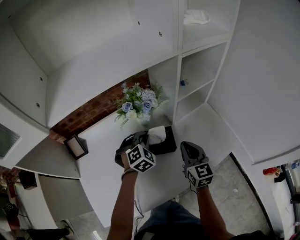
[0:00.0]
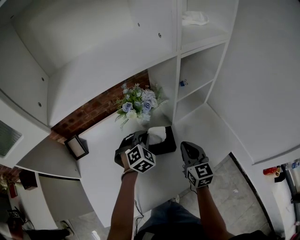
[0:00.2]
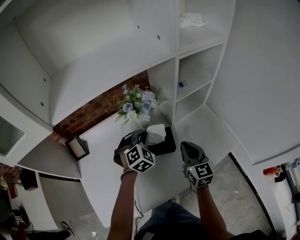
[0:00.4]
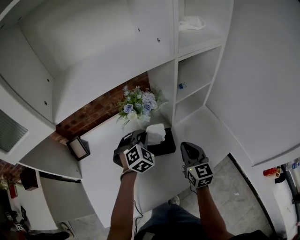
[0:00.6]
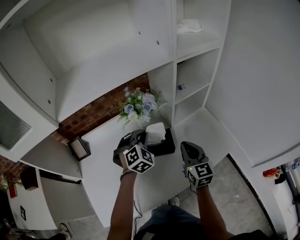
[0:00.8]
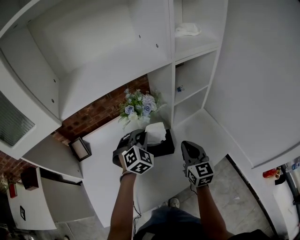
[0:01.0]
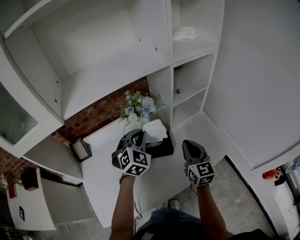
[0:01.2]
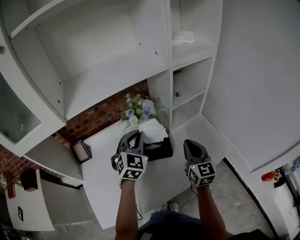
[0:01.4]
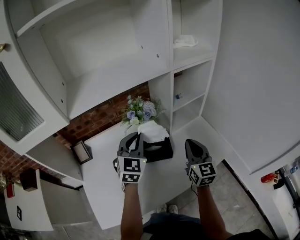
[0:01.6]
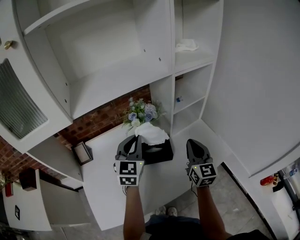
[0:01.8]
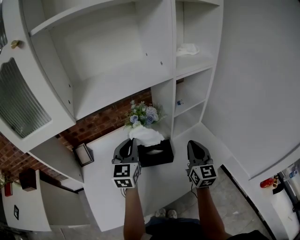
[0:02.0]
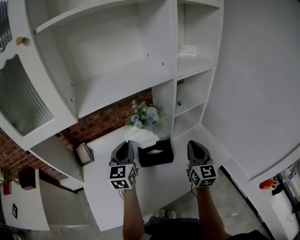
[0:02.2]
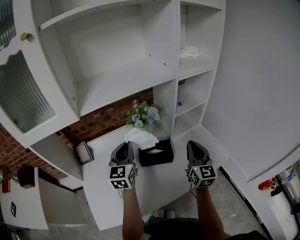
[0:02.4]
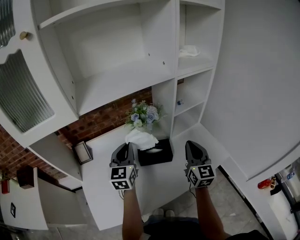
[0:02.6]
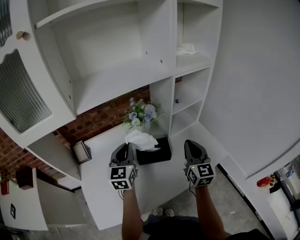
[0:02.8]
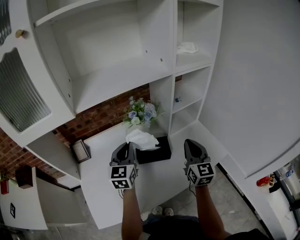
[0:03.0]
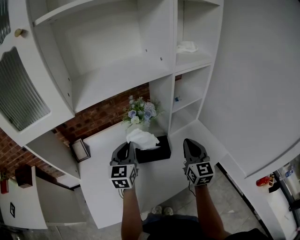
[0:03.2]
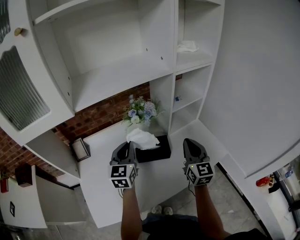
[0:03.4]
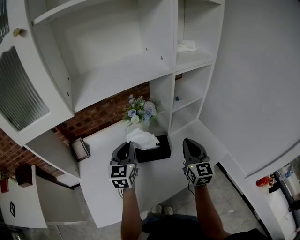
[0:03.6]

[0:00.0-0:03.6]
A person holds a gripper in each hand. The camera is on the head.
0:00.0 to 0:01.8: The left gripper heads upward, covering about 20 cm, and tips its fingers upward by approximately 40 degrees; the right gripper travels upward by some 10 cm.
0:01.8 to 0:03.6: The left gripper shifts by approximately 5 cm.

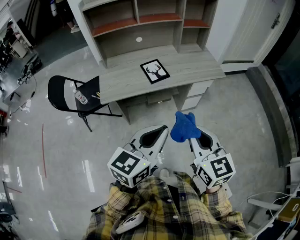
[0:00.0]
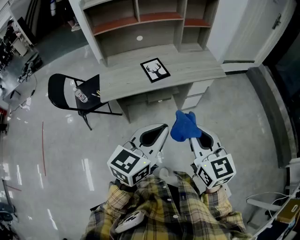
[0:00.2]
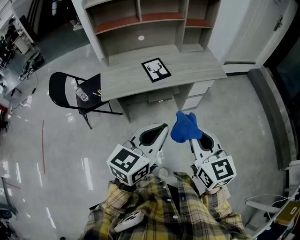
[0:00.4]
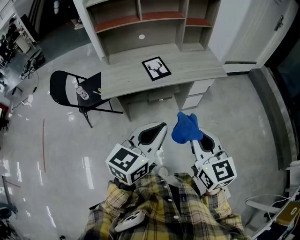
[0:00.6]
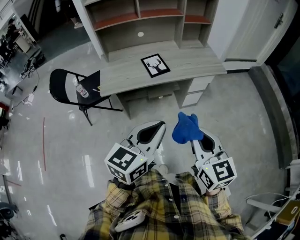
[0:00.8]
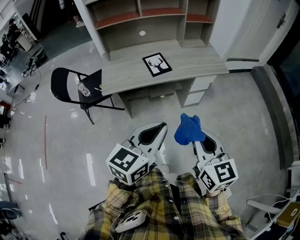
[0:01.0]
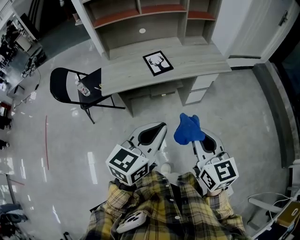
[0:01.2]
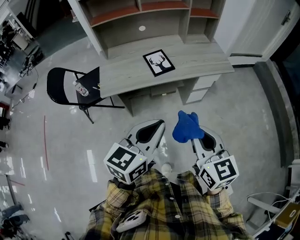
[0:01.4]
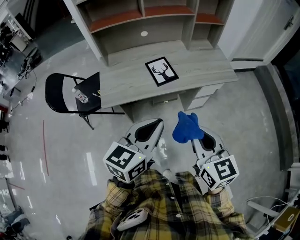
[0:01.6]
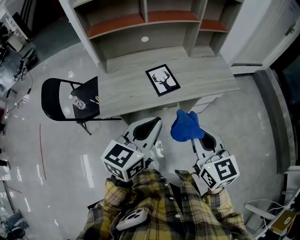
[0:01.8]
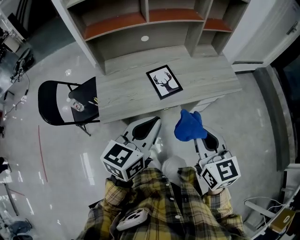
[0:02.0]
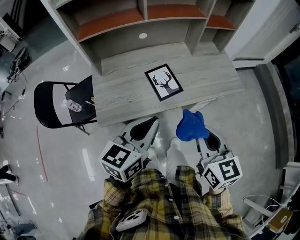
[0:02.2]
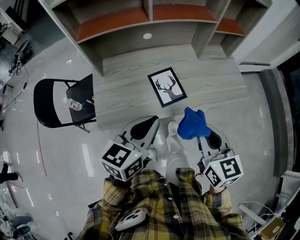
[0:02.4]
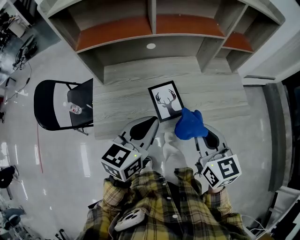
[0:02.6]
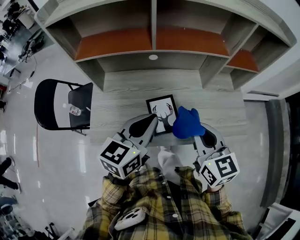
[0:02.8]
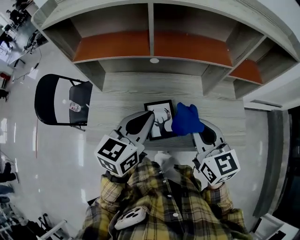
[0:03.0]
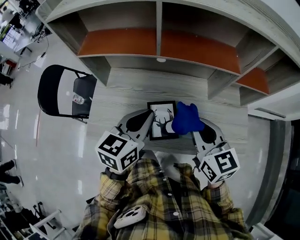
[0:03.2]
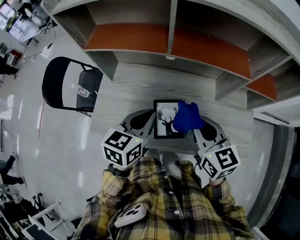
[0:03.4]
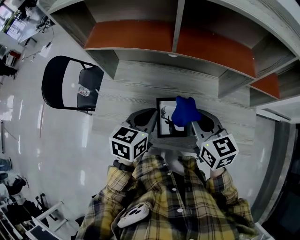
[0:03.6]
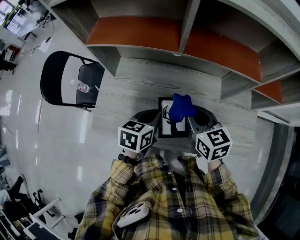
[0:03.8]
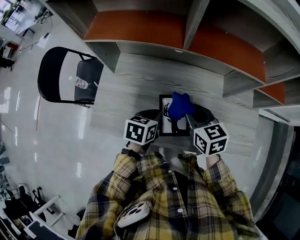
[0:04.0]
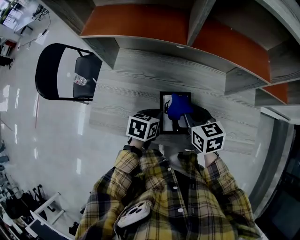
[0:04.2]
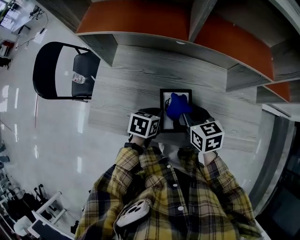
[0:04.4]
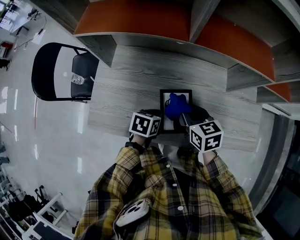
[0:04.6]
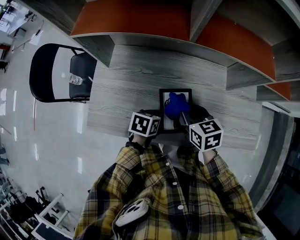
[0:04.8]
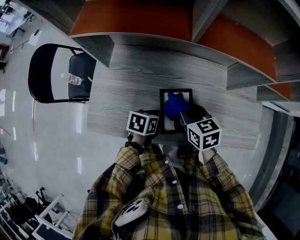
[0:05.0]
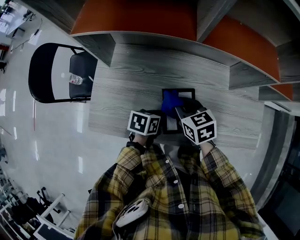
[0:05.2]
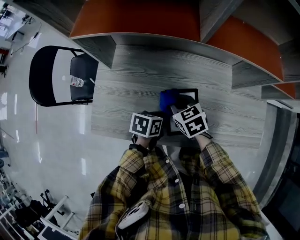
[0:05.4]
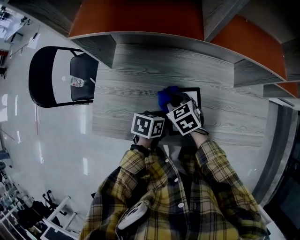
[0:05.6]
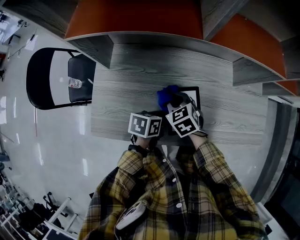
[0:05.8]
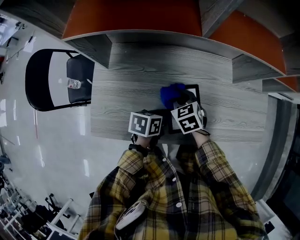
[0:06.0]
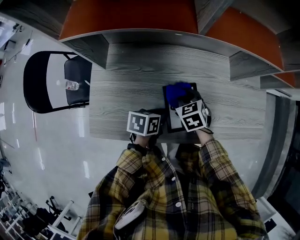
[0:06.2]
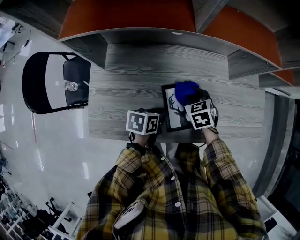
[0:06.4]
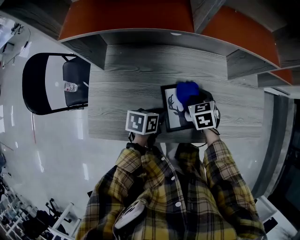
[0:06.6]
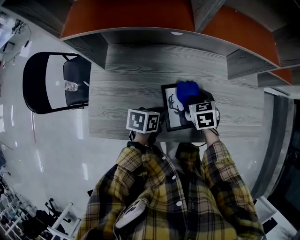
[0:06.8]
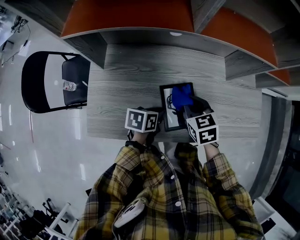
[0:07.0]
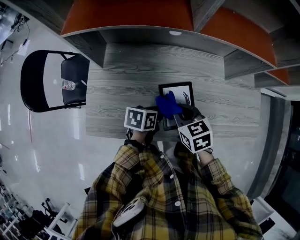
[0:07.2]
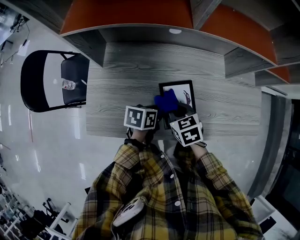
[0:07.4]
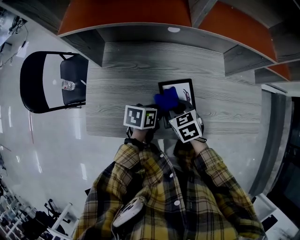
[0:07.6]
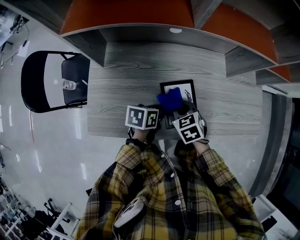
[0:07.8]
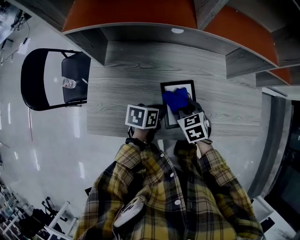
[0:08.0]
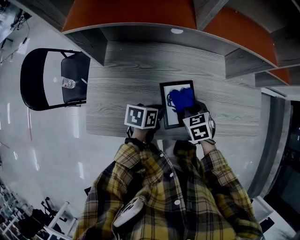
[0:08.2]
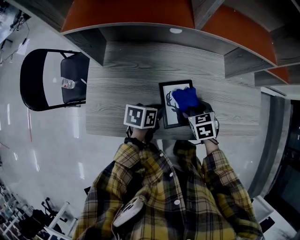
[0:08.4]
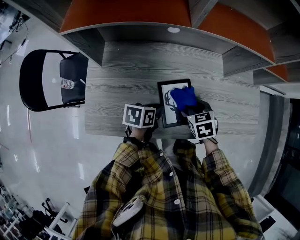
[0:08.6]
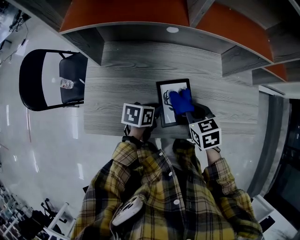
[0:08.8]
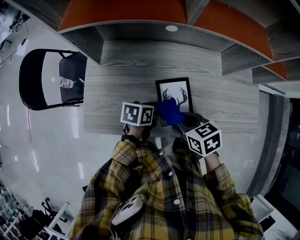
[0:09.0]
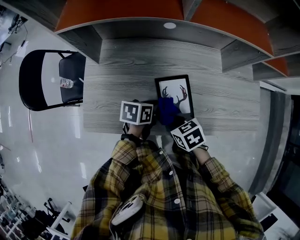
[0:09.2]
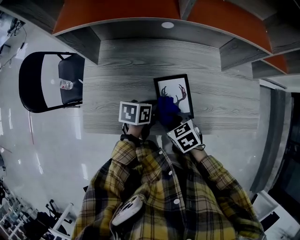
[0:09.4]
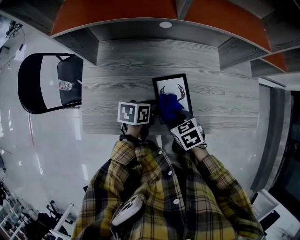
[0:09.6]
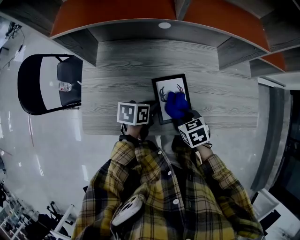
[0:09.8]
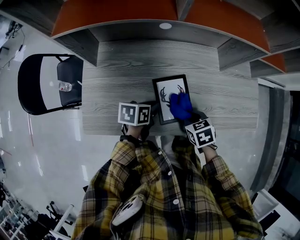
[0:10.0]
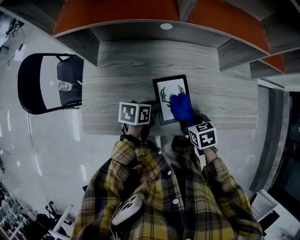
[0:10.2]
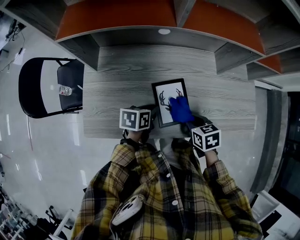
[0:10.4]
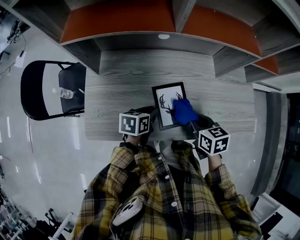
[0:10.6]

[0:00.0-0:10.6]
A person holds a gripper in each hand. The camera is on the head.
0:00.0 to 0:01.6: The right gripper moves forward, approximately 10 cm, while the left gripper moves forward and to the left, some 10 cm.
0:01.6 to 0:03.0: The grippers both shift forward by some 40 cm.
0:03.0 to 0:04.6: Both grippers move downward, about 25 cm. The left gripper points its fingers approximately 40 degrees further downward. The right gripper changes its angle by about 30 degrees.
0:04.6 to 0:06.0: The right gripper heads downward and to the left, covering roughly 10 cm, and swivels approximately 20 degrees.
0:06.0 to 0:07.6: The right gripper heads backward, covering about 5 cm.
0:07.6 to 0:09.0: The right gripper is displaced upward by some 5 cm.
0:09.0 to 0:10.6: The right gripper heads to the right, covering roughly 5 cm.

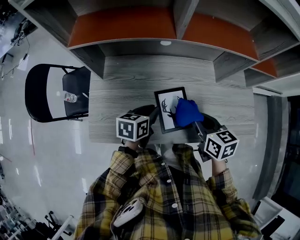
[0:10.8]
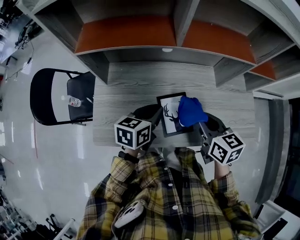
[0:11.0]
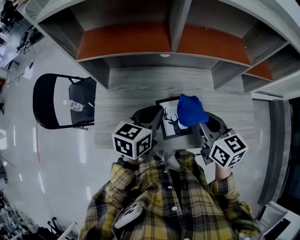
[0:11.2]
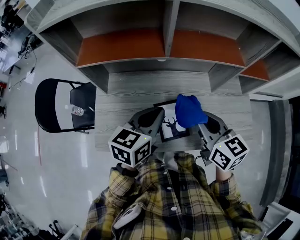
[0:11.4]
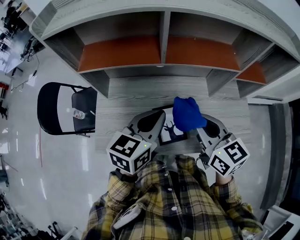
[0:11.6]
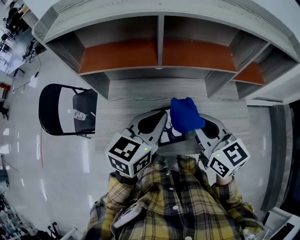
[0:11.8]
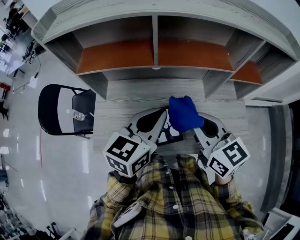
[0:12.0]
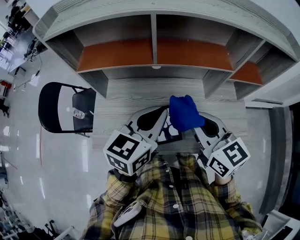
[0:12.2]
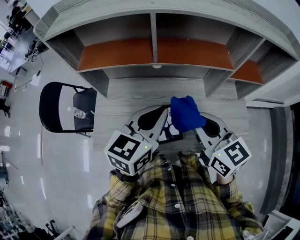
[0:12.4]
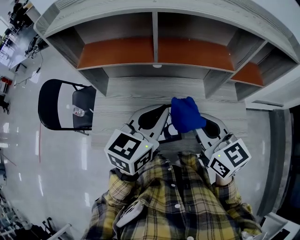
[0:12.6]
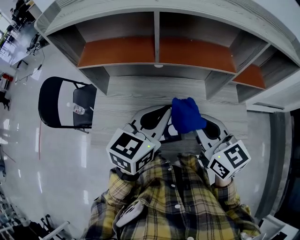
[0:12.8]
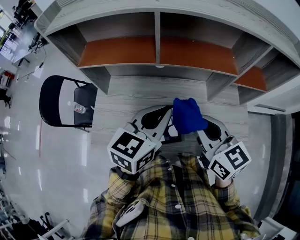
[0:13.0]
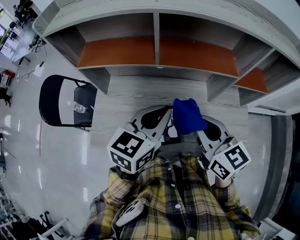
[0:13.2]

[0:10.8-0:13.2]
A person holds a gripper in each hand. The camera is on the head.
0:10.8 to 0:12.0: The grippers both shift upward by approximately 25 cm. The right gripper turns by about 30 degrees. Meanwhile the left gripper turns by some 30 degrees.
0:12.0 to 0:13.2: The grippers make only small movements.

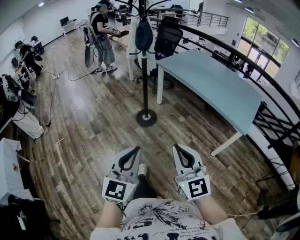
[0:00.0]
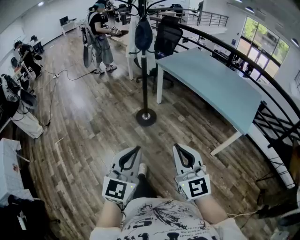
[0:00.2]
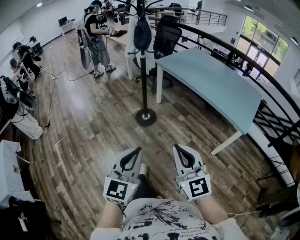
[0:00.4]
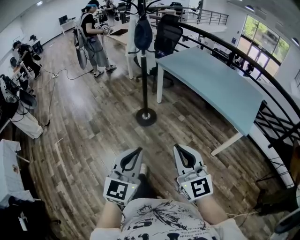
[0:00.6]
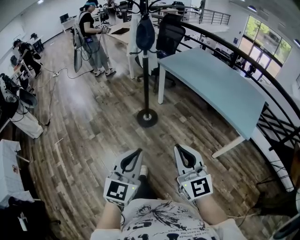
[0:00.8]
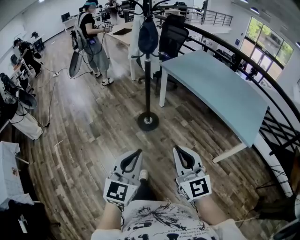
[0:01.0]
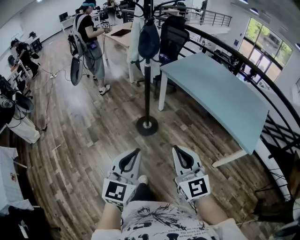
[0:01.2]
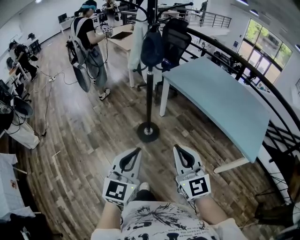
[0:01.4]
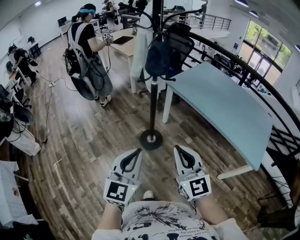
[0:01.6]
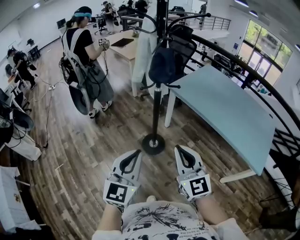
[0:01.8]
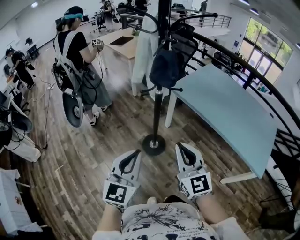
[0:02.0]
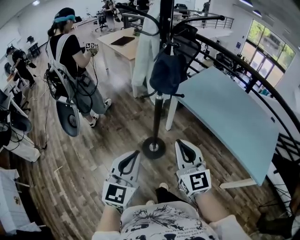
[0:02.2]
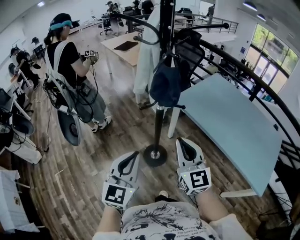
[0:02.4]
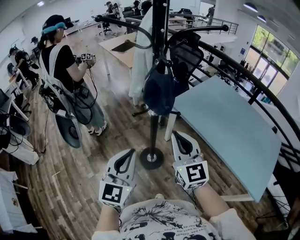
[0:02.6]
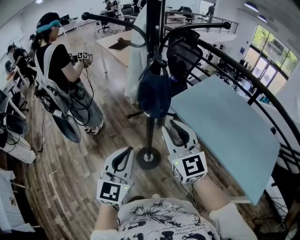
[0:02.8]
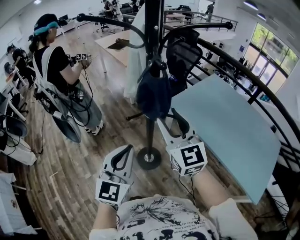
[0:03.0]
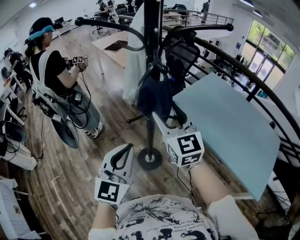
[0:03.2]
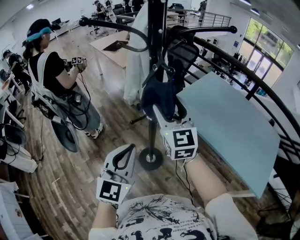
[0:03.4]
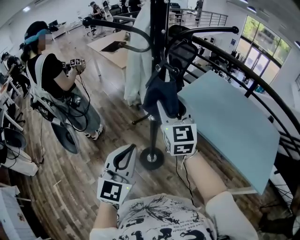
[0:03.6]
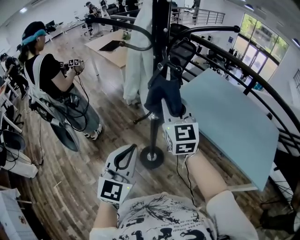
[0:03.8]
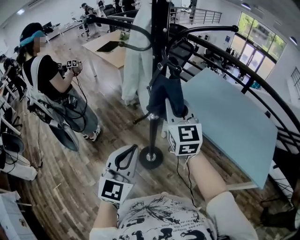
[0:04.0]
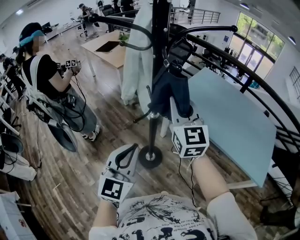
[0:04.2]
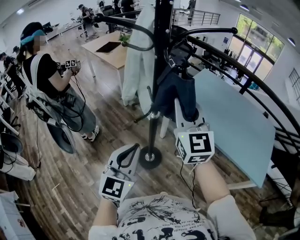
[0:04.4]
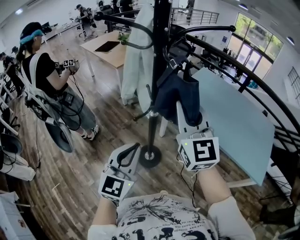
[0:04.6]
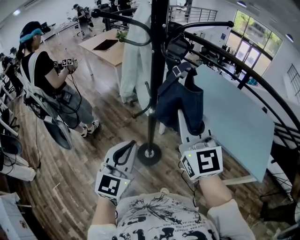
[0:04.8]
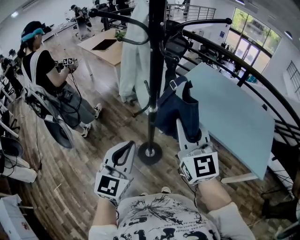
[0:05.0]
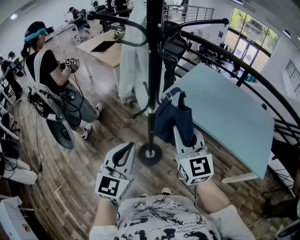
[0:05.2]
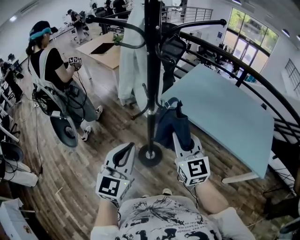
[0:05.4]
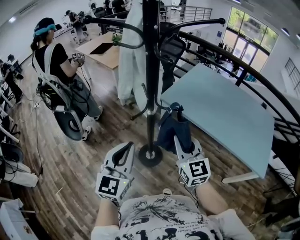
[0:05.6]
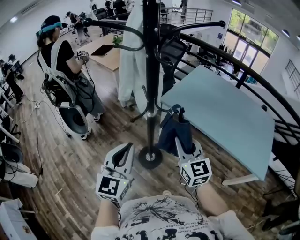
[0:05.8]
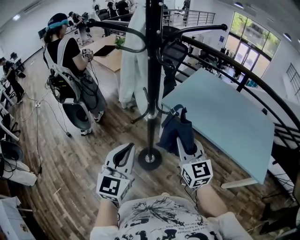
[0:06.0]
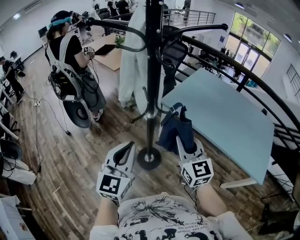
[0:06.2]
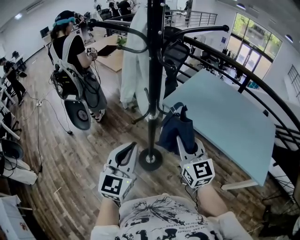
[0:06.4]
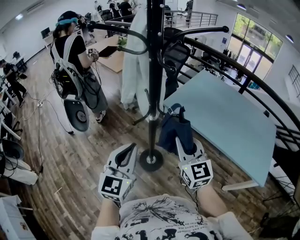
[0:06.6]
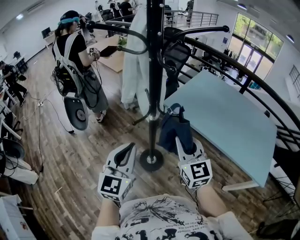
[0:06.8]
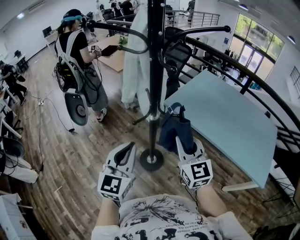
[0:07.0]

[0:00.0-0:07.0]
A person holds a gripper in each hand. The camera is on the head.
0:00.0 to 0:01.4: Both grippers travel together forward, some 25 cm.
0:01.4 to 0:02.8: The two grippers go roughly 35 cm forward.
0:02.8 to 0:04.2: The right gripper moves forward and upward, approximately 10 cm, and opens and closes again.
0:04.2 to 0:05.6: The right gripper shifts some 15 cm downward and backward.
0:05.6 to 0:07.0: The grippers stay close to where they were, moving slightly.
